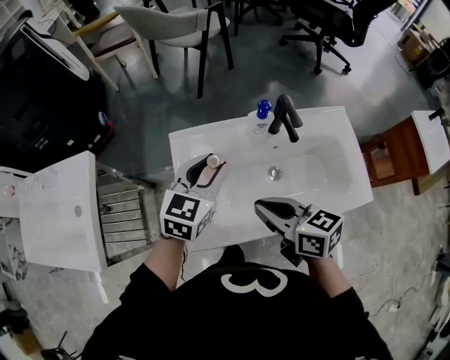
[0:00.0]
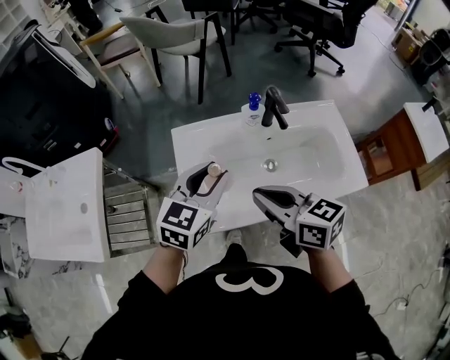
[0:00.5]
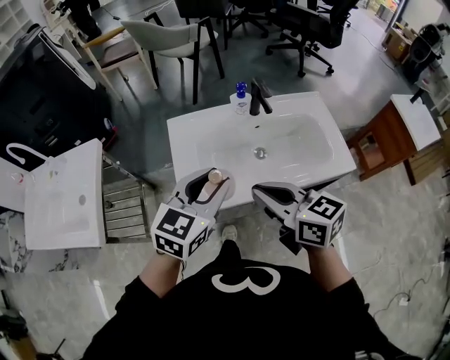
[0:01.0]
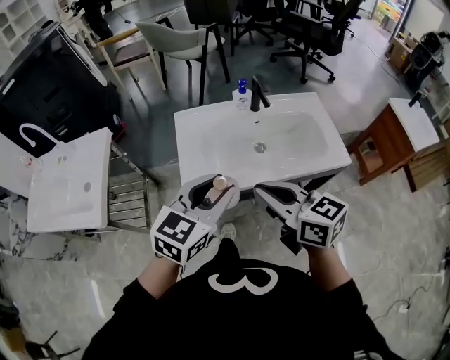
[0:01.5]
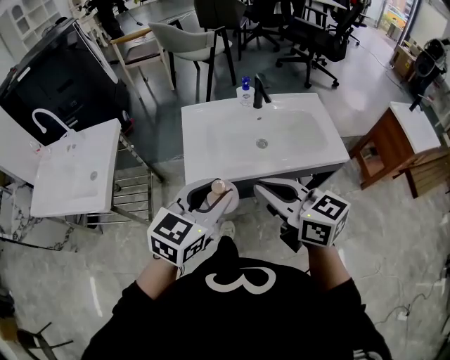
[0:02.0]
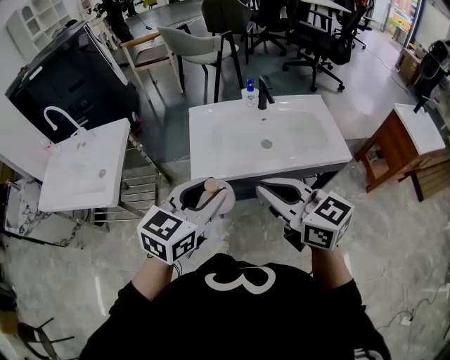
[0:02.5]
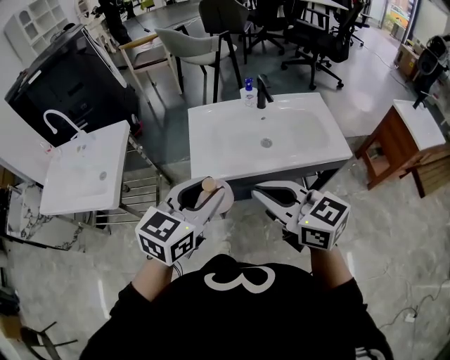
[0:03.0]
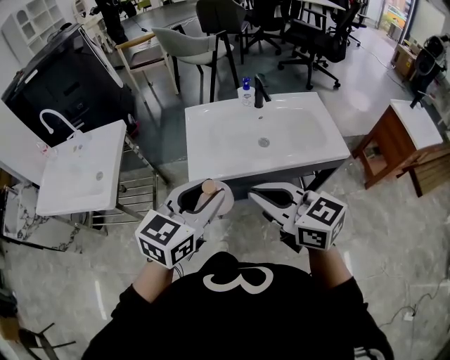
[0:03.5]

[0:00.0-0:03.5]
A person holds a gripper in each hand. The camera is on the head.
0:00.0 to 0:02.0: The right gripper travels backward and upward by approximately 25 cm, and swivels some 20 degrees, while the left gripper heads backward, covering roughly 35 cm.
0:02.0 to 0:03.5: The grippers move only a little.

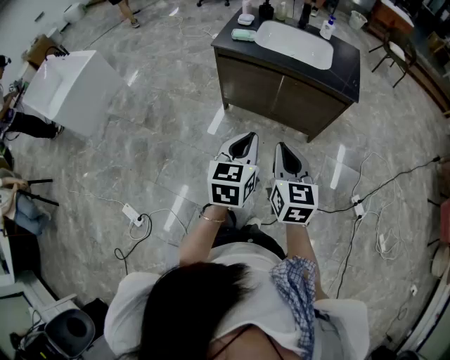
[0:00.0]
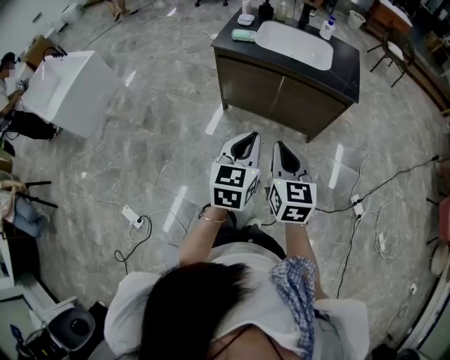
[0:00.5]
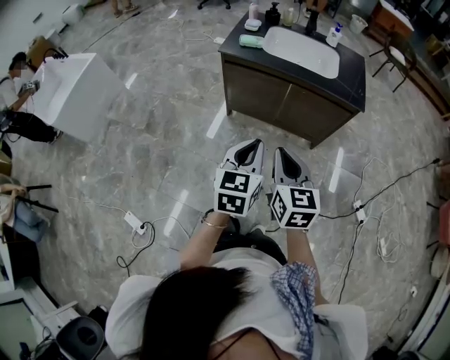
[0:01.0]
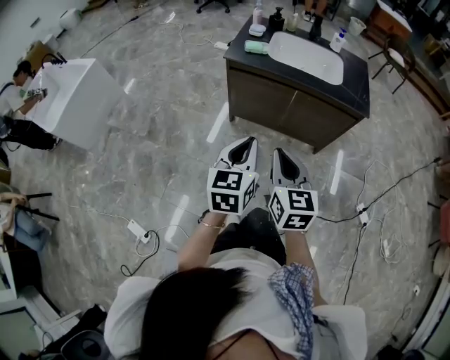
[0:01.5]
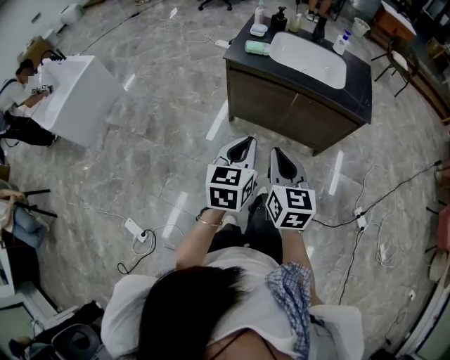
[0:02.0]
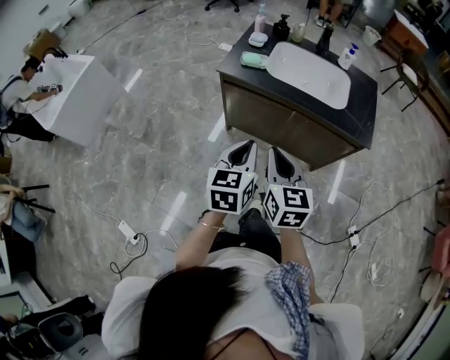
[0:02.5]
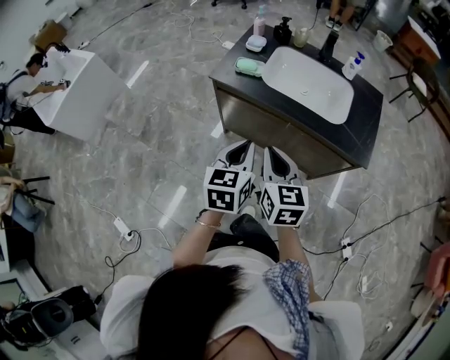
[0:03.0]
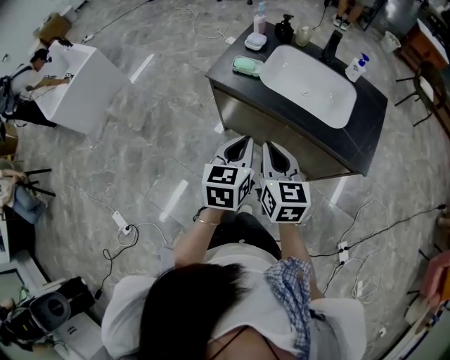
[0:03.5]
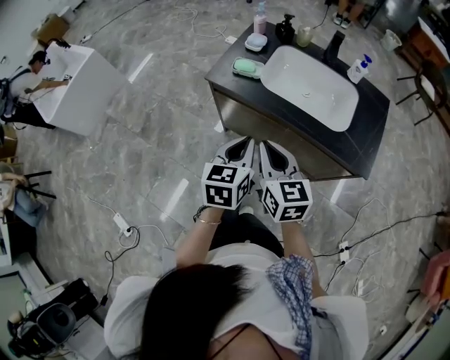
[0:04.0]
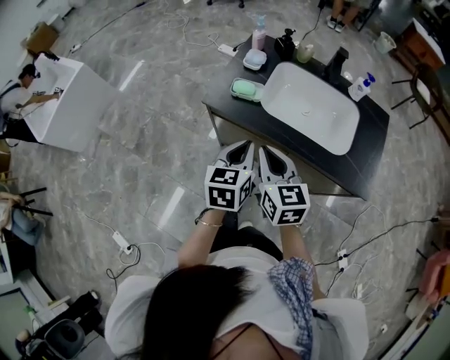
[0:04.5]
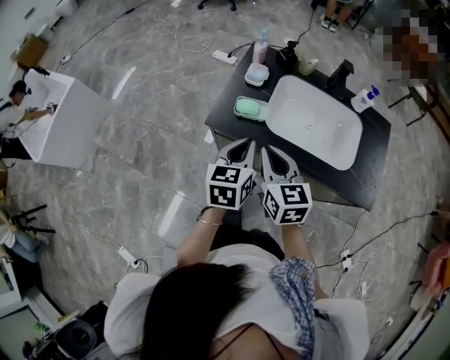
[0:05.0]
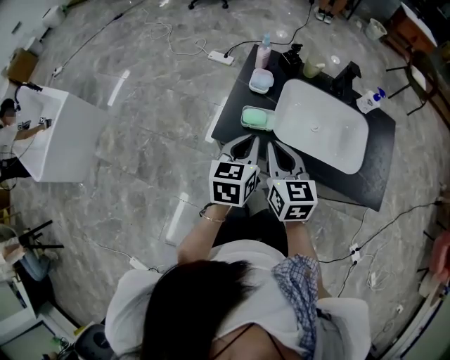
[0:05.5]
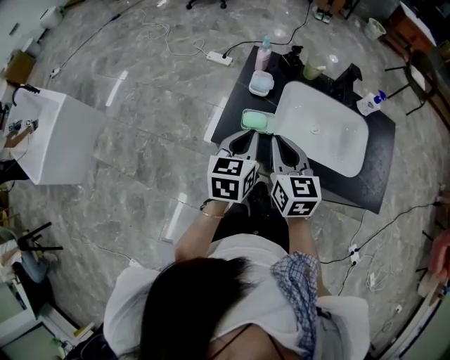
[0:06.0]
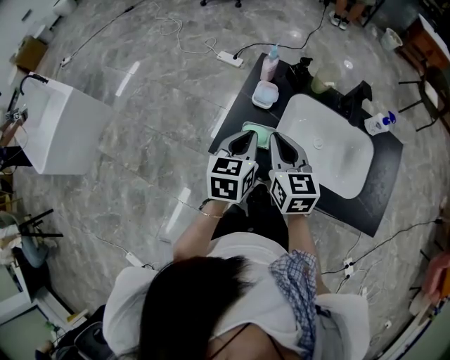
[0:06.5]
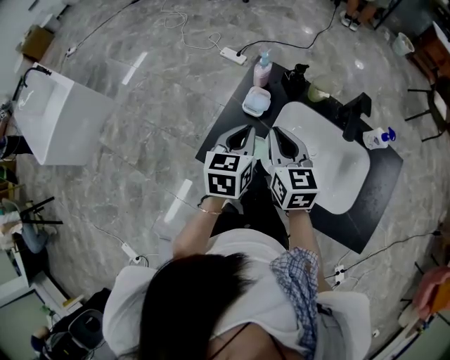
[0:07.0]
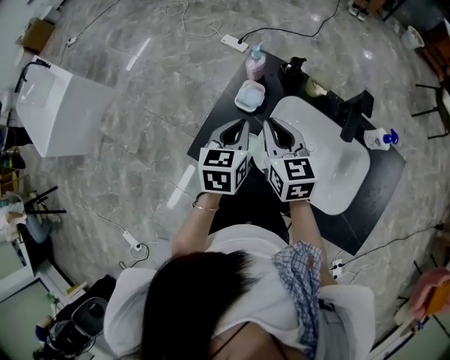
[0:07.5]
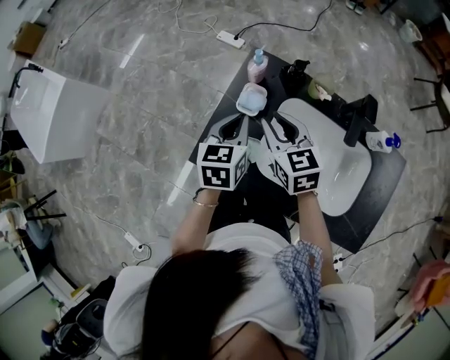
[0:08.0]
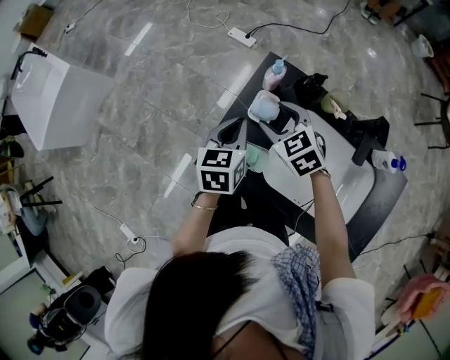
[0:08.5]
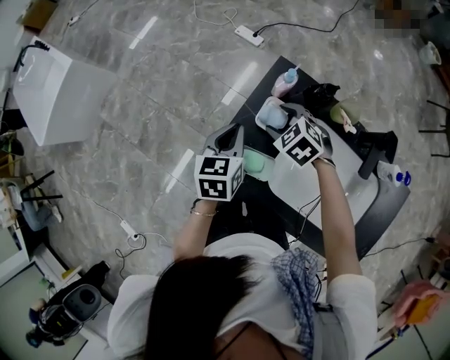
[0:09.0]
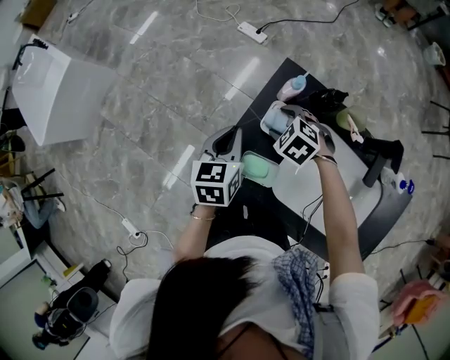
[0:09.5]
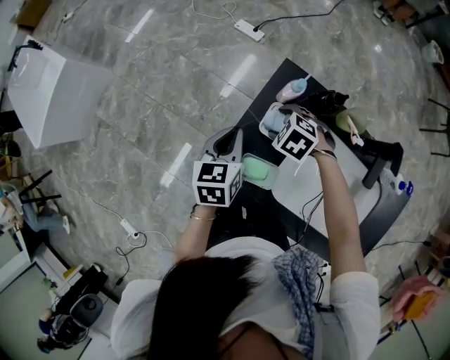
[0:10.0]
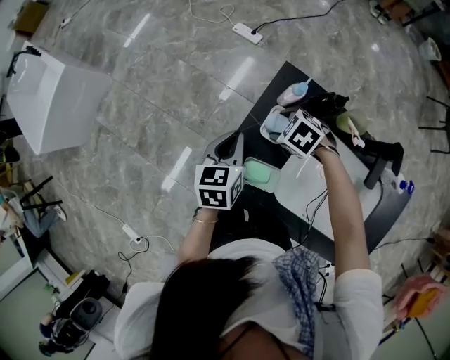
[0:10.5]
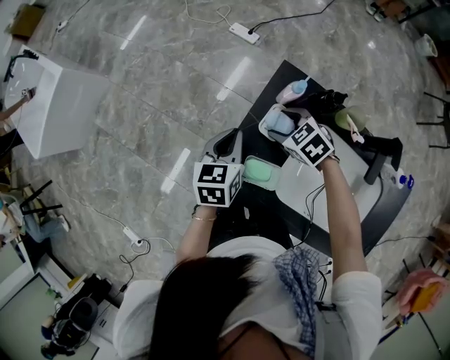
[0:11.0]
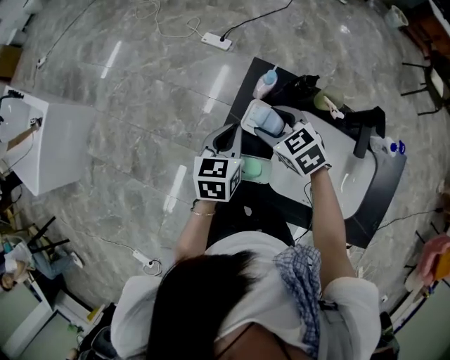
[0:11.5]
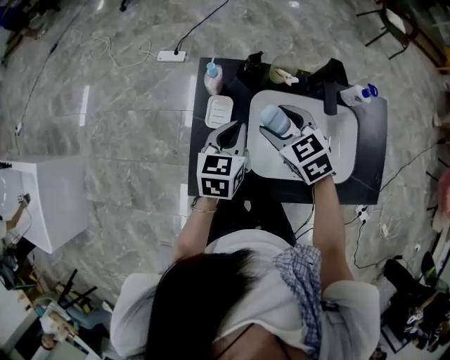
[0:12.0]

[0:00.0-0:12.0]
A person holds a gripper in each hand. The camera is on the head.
0:00.0 to 0:02.0: The grippers both shift to the left and forward by roughly 15 cm.
0:02.0 to 0:04.0: The left gripper shifts roughly 25 cm forward and to the right. Meanwhile the right gripper is displaced forward by roughly 25 cm.
0:04.0 to 0:06.0: The grippers both shift forward by roughly 25 cm.
0:06.0 to 0:08.0: The two grippers go about 15 cm forward. The right gripper rotates some 20 degrees.
0:08.0 to 0:10.0: The right gripper heads downward and forward, covering roughly 20 cm, points its fingers roughly 40 degrees further downward, and opens up. Meanwhile the left gripper heads to the left, forward and downward, covering about 10 cm.
0:10.0 to 0:12.0: The left gripper moves about 15 cm, and swivels roughly 30 degrees. The right gripper moves upward, approximately 15 cm, and changes its angle by roughly 50 degrees.

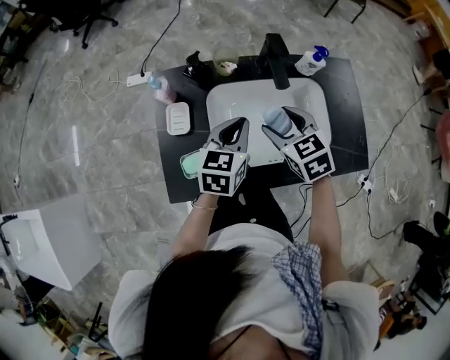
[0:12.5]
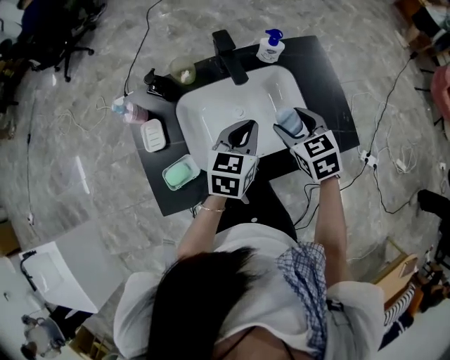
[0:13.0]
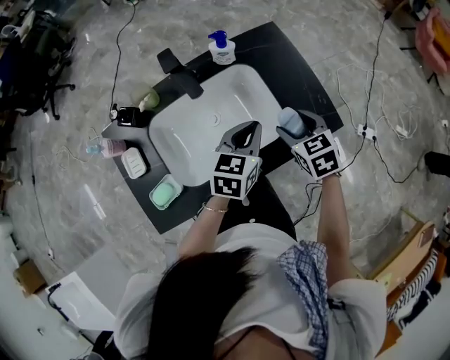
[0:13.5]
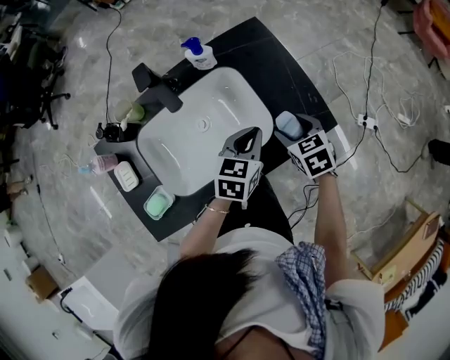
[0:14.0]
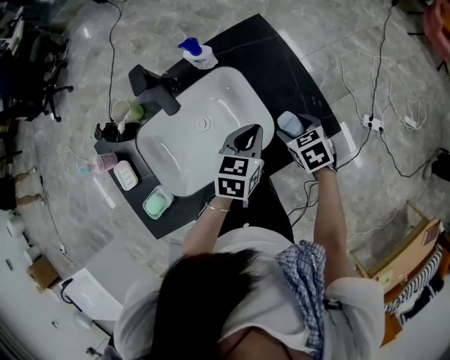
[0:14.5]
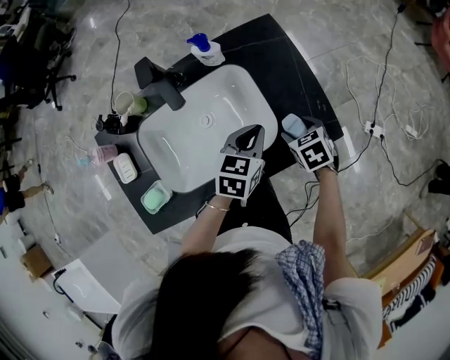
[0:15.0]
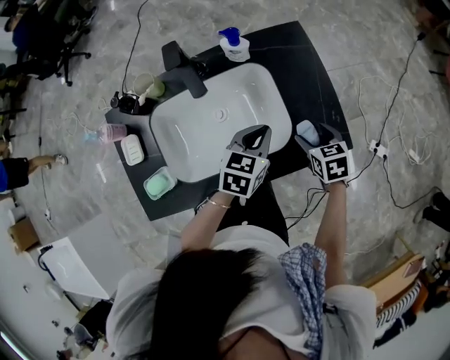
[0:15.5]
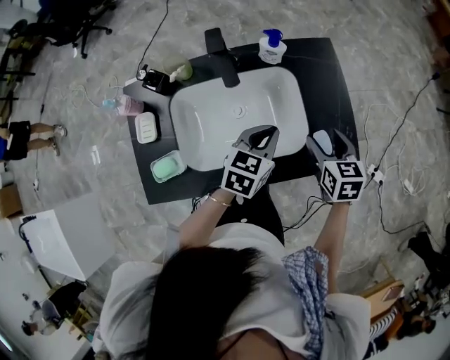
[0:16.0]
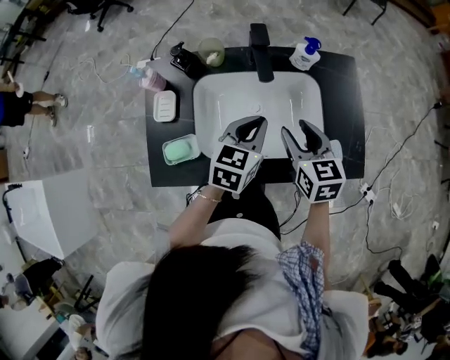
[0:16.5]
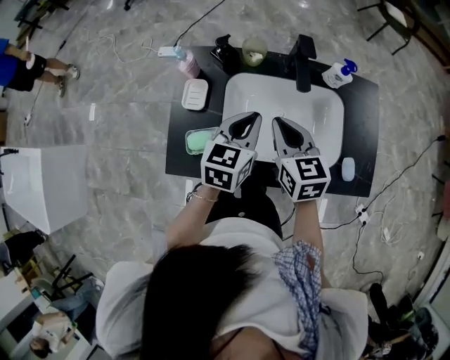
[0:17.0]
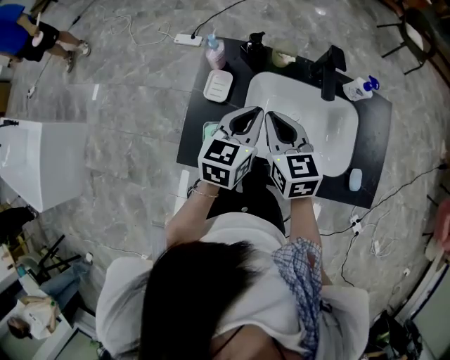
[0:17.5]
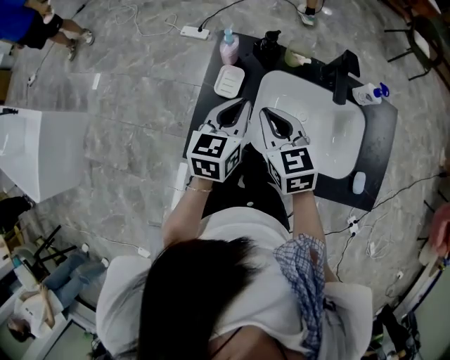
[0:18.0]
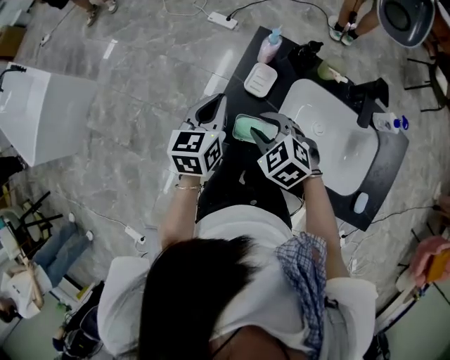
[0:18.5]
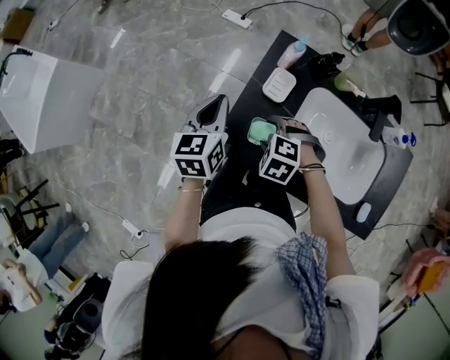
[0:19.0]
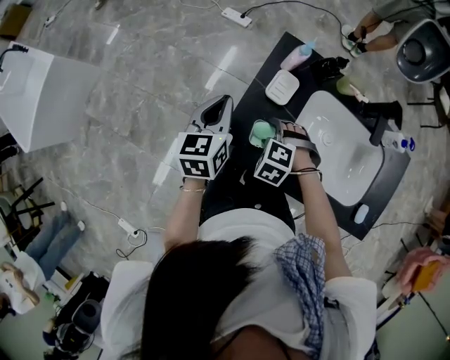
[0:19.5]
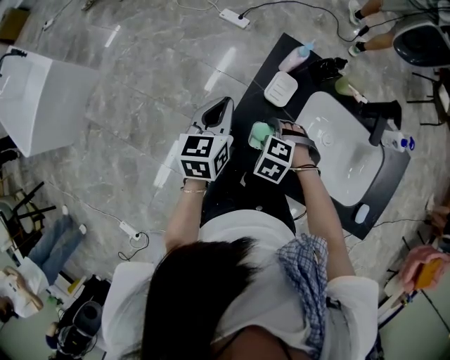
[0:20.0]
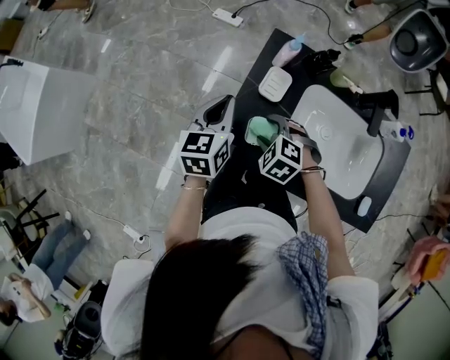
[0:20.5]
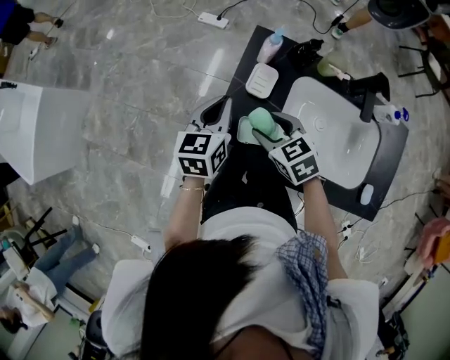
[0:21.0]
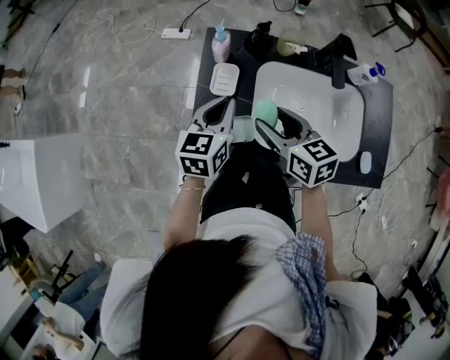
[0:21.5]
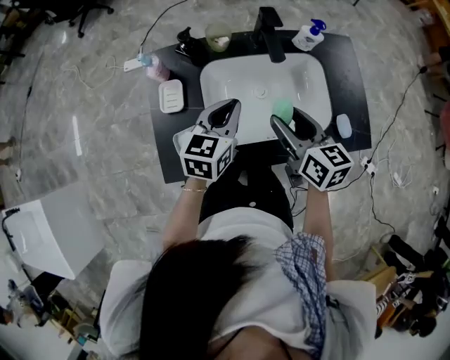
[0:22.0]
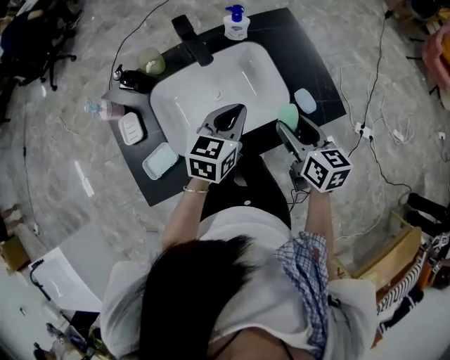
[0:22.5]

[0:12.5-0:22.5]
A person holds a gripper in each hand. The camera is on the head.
0:12.5 to 0:14.5: The right gripper shifts by about 35 cm, and swivels some 30 degrees, while the left gripper ends up some 30 cm from where it was, and changes its angle by approximately 30 degrees.
0:14.5 to 0:16.5: The left gripper goes about 20 cm to the left, and swivels roughly 20 degrees; the right gripper goes some 25 cm to the left and upward, and changes its angle by about 30 degrees.
0:16.5 to 0:18.5: The left gripper ends up roughly 40 cm from where it was, and turns by about 40 degrees. Meanwhile the right gripper shifts by about 35 cm, rolls counterclockwise, seen from behind, by approximately 60 degrees, and closes, then reopens.
0:18.5 to 0:20.5: The right gripper travels downward by approximately 5 cm, and opens.
0:20.5 to 0:22.5: The pair of grippers is taken about 40 cm. The left gripper swivels some 60 degrees. Meanwhile the right gripper twists roughly 90 degrees clockwise, seen from behind.

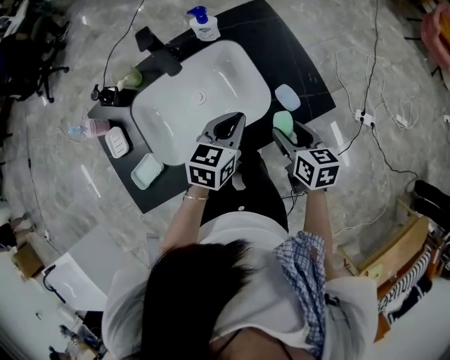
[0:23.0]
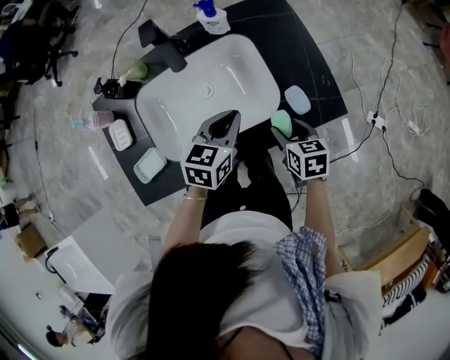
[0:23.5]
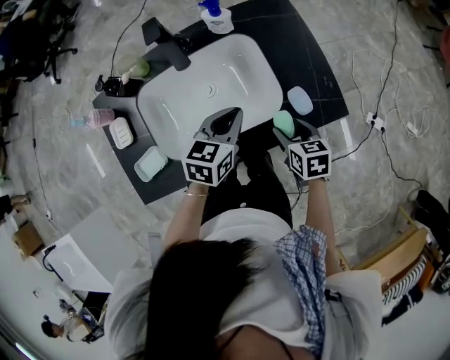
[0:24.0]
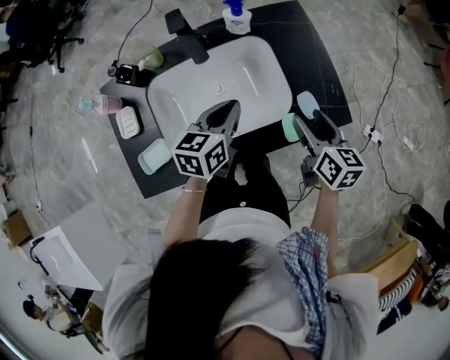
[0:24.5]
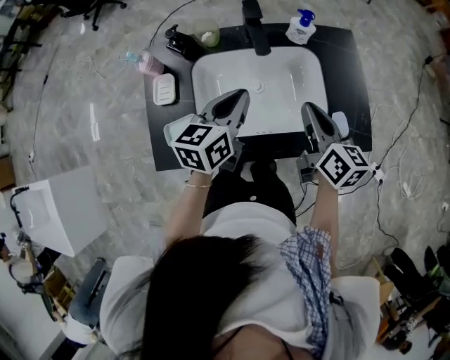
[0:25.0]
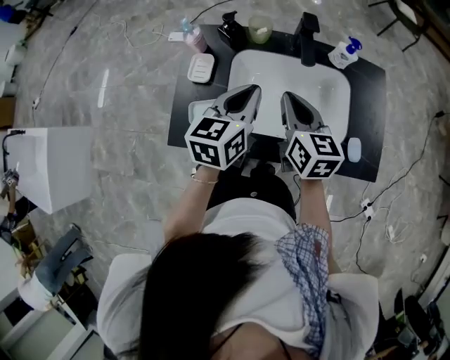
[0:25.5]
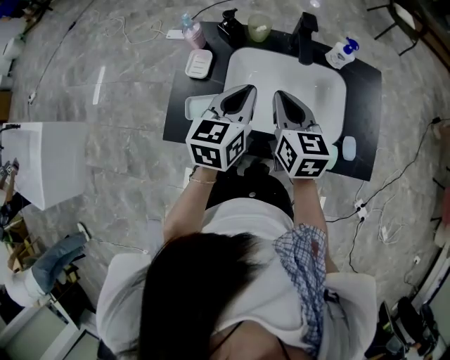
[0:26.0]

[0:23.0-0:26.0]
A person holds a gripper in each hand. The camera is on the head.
0:23.0 to 0:24.5: The right gripper moves forward, approximately 5 cm. Meanwhile the left gripper travels to the left by approximately 5 cm.
0:24.5 to 0:26.0: The right gripper changes place by approximately 30 cm, turns by some 30 degrees, and closes; the left gripper changes place by roughly 20 cm, and turns by roughly 30 degrees.
